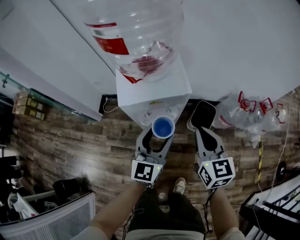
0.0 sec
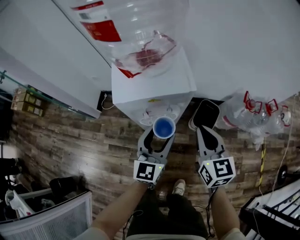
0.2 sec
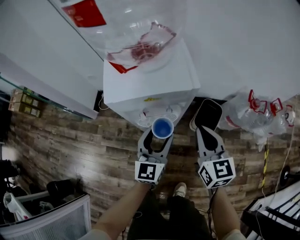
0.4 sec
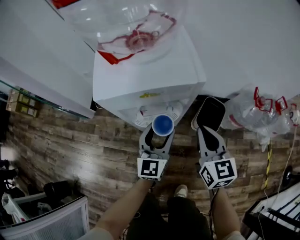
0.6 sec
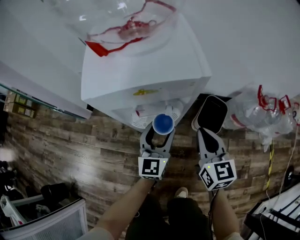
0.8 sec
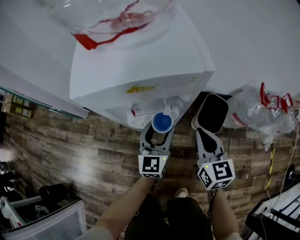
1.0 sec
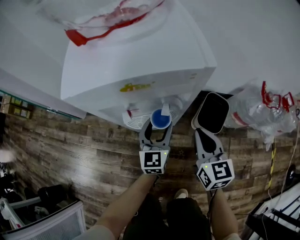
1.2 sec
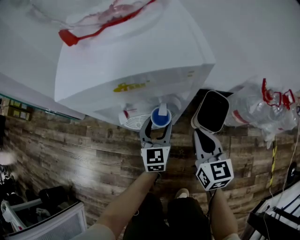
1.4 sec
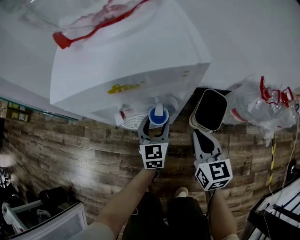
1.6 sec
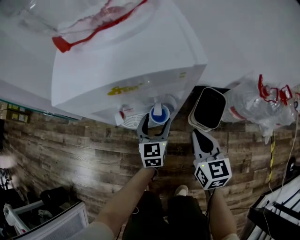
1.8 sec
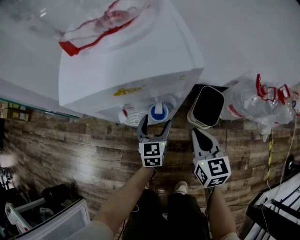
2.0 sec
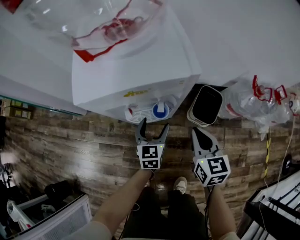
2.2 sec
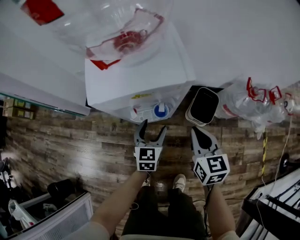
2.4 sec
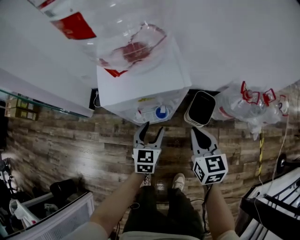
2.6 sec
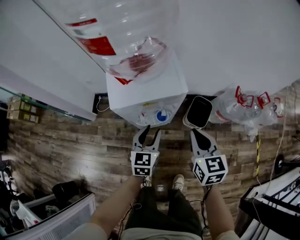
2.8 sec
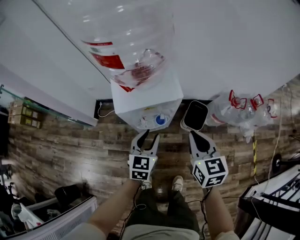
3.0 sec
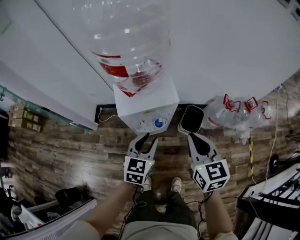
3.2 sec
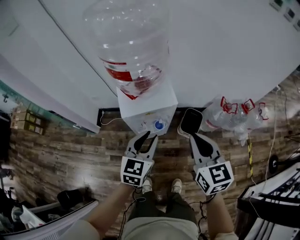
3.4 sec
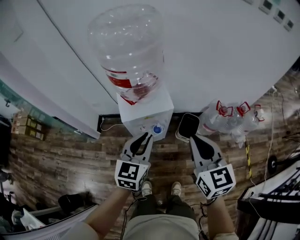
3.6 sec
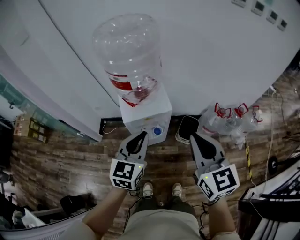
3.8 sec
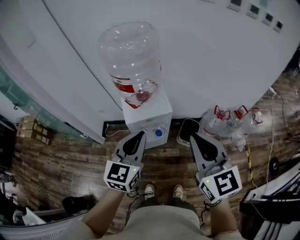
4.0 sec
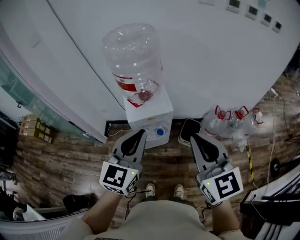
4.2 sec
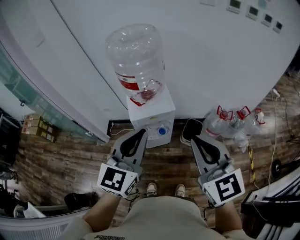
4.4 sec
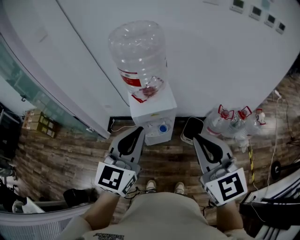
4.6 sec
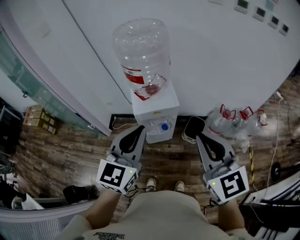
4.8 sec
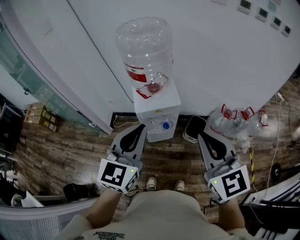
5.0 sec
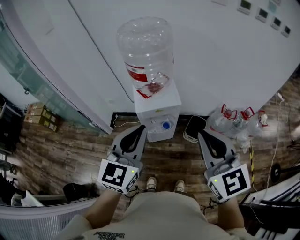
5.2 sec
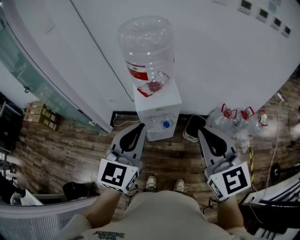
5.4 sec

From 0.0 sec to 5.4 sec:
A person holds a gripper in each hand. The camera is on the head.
From 0.0 sec to 1.4 sec: The grippers both shift downward by roughly 30 cm.
From 1.4 sec to 2.8 sec: The grippers both shift upward by some 20 cm.
From 2.8 sec to 4.0 sec: The two grippers go some 35 cm upward. The left gripper closes. Meanwhile the right gripper rotates about 20 degrees.
From 4.0 sec to 5.4 sec: The right gripper changes place by approximately 5 cm. The left gripper goes some 10 cm upward and backward.

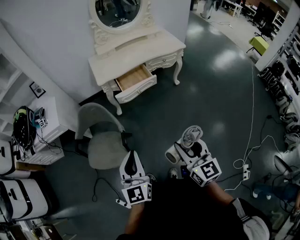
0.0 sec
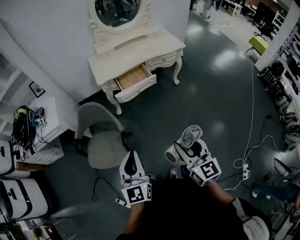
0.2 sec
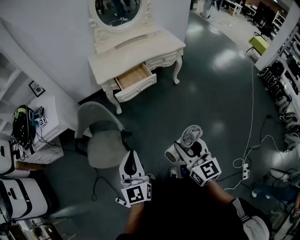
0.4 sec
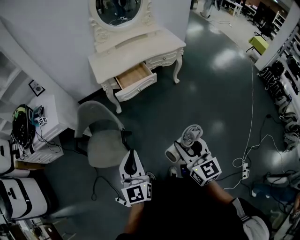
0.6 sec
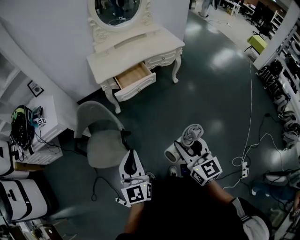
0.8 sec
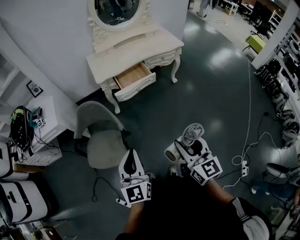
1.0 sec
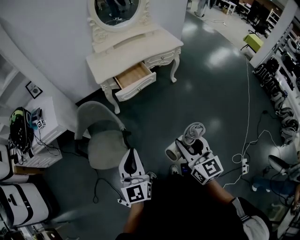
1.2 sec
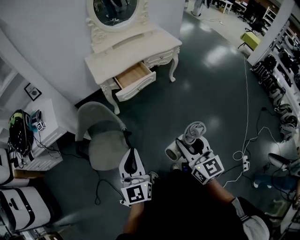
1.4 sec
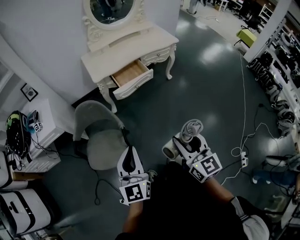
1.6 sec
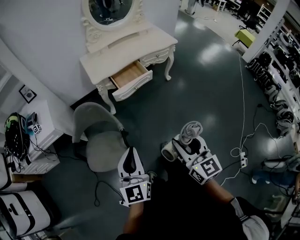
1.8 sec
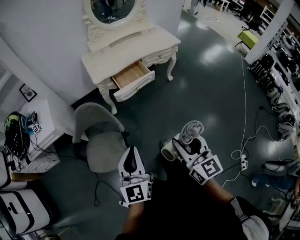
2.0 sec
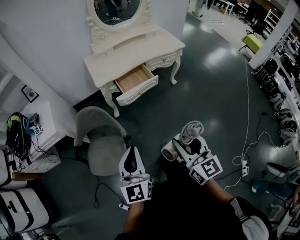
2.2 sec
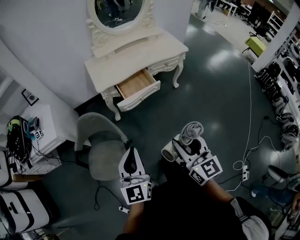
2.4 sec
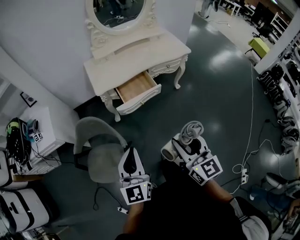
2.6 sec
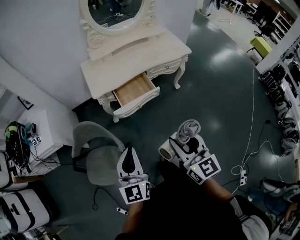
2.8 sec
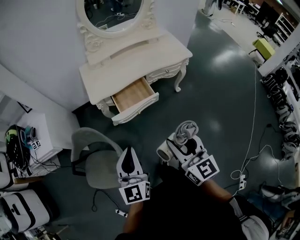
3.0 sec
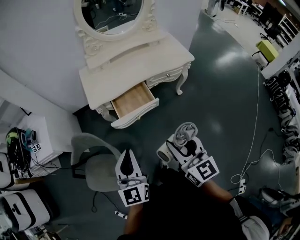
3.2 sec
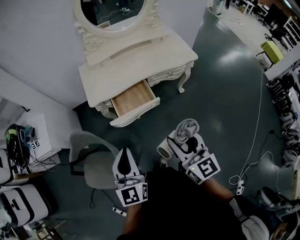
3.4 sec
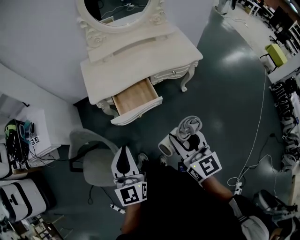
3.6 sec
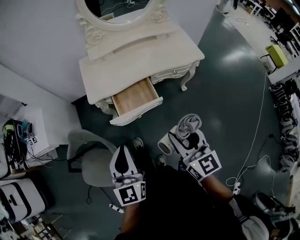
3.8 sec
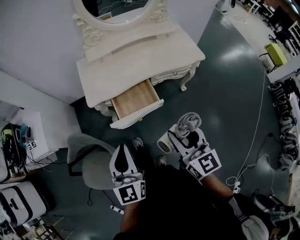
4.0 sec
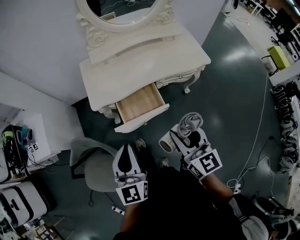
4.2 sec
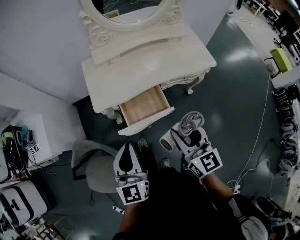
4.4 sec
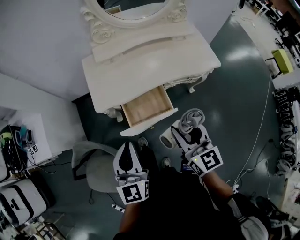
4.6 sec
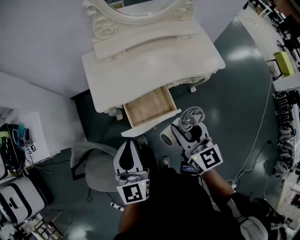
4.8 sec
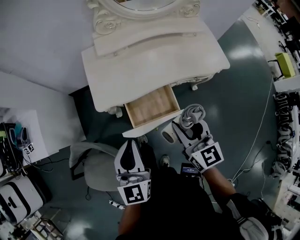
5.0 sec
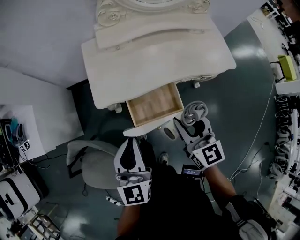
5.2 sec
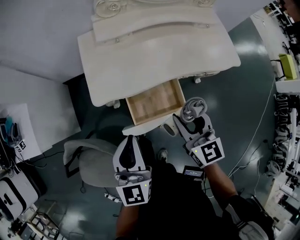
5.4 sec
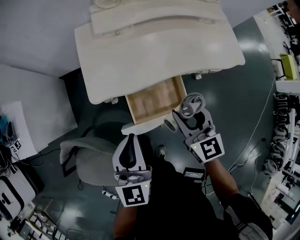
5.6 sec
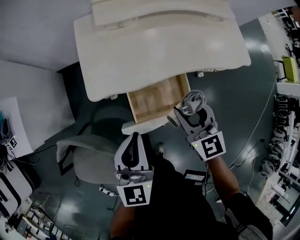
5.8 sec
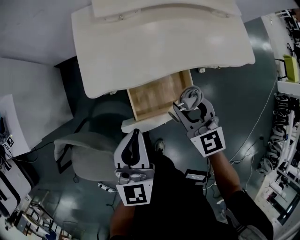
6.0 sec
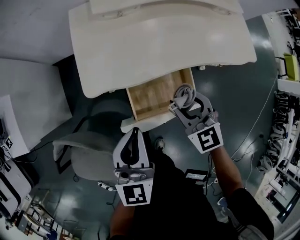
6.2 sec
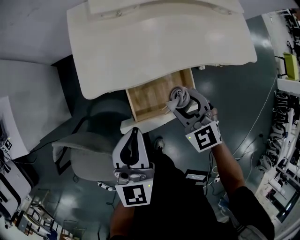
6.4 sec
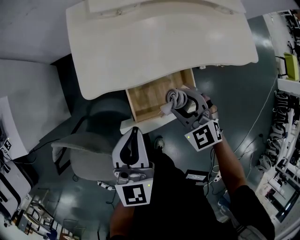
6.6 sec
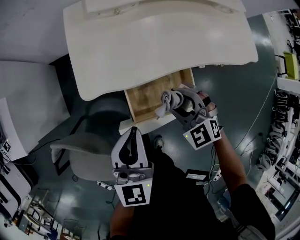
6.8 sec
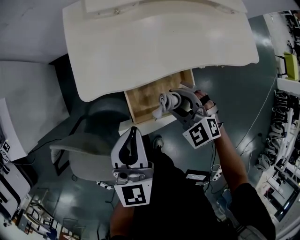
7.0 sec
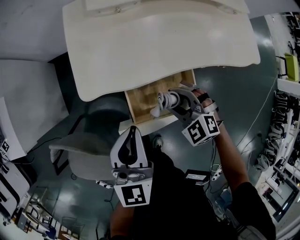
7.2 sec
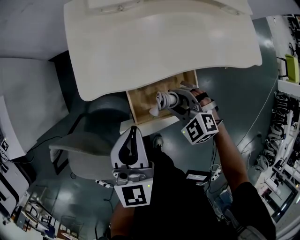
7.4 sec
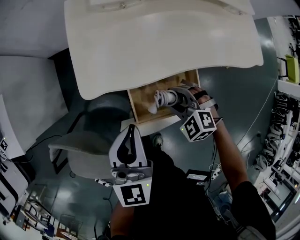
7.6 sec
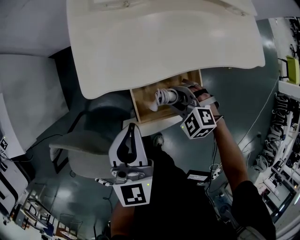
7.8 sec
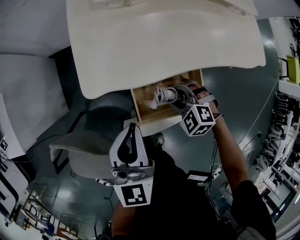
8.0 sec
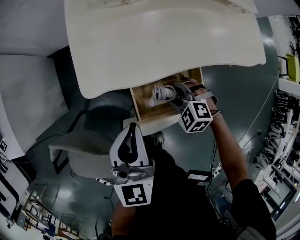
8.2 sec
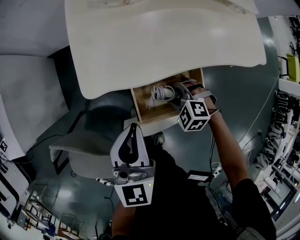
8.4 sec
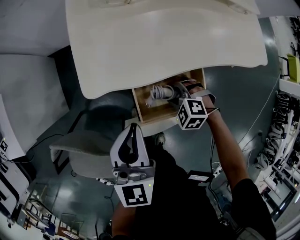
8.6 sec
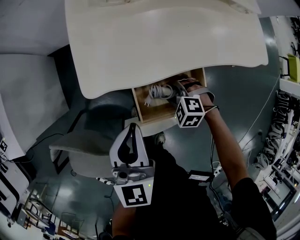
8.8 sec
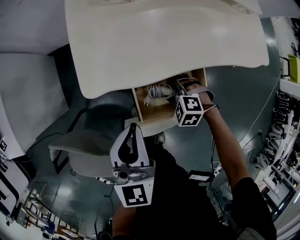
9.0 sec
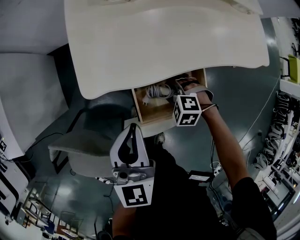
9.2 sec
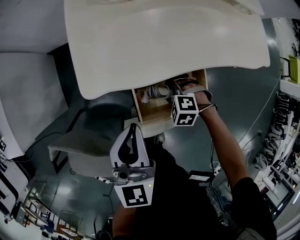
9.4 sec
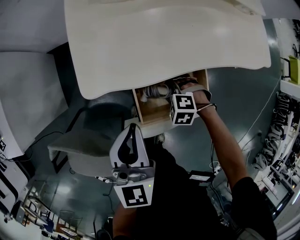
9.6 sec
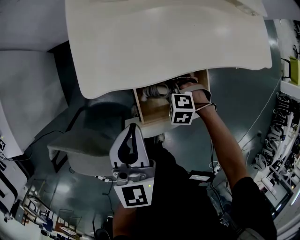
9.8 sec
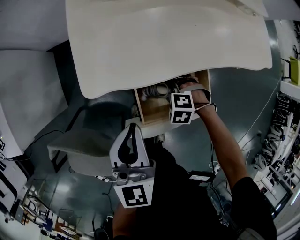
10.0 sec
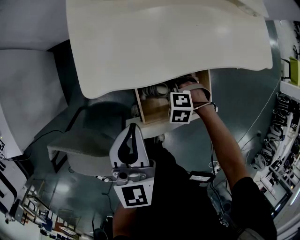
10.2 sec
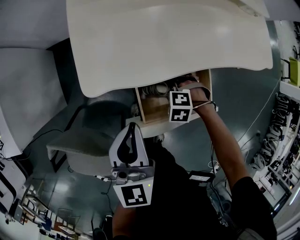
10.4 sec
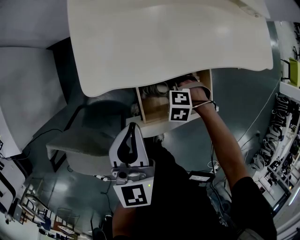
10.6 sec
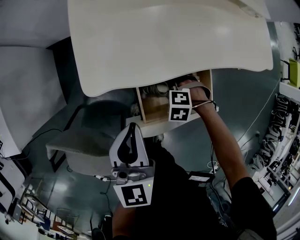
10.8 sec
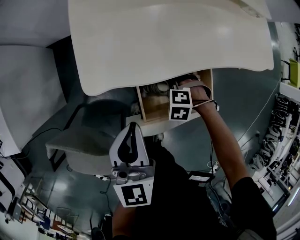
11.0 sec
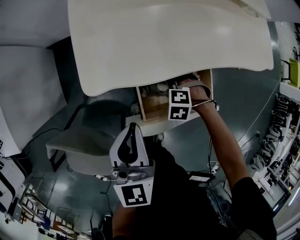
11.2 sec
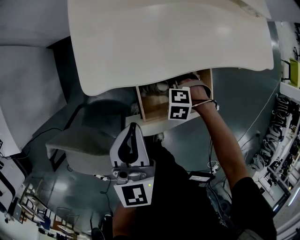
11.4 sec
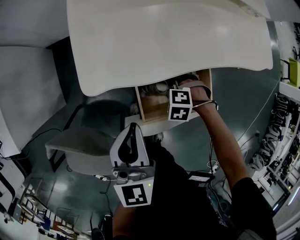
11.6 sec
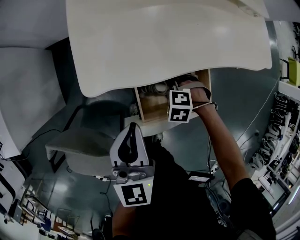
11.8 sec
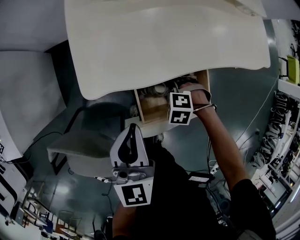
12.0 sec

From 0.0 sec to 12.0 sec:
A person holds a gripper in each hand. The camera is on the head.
From 0.0 sec to 1.6 sec: The two grippers go some 5 cm to the left.
From 1.6 sec to 3.0 sec: The right gripper travels forward by roughly 25 cm. Meanwhile the left gripper goes roughly 25 cm forward and to the right.
From 3.0 sec to 4.4 sec: The grippers both shift forward by roughly 20 cm.
From 4.4 sec to 6.0 sec: Both grippers move downward and forward, some 25 cm. The right gripper swivels roughly 30 degrees.
From 6.0 sec to 7.6 sec: The left gripper moves approximately 5 cm, while the right gripper shifts some 15 cm downward, and tips its fingers downward by some 30 degrees.
From 7.6 sec to 9.0 sec: The right gripper moves downward, roughly 10 cm.
From 9.0 sec to 12.0 sec: The grippers stay close to where they were, moving slightly.

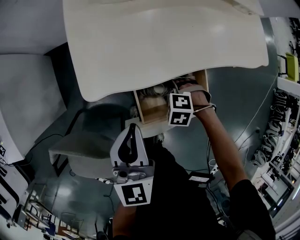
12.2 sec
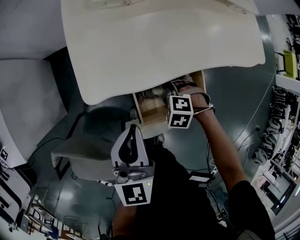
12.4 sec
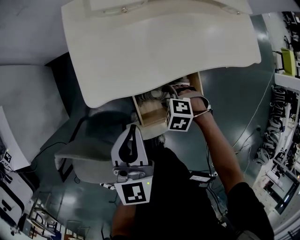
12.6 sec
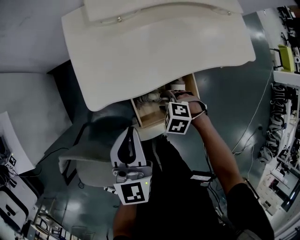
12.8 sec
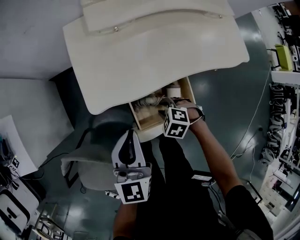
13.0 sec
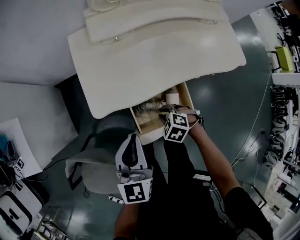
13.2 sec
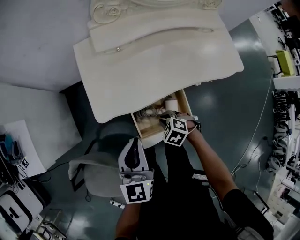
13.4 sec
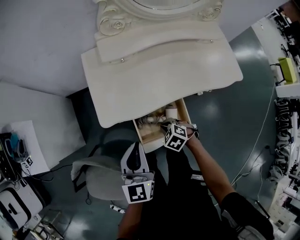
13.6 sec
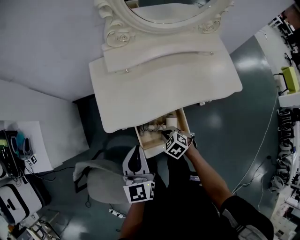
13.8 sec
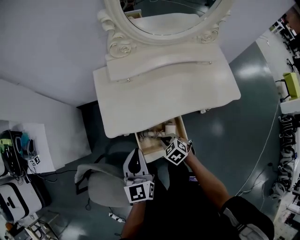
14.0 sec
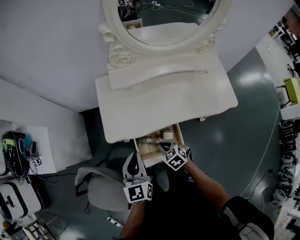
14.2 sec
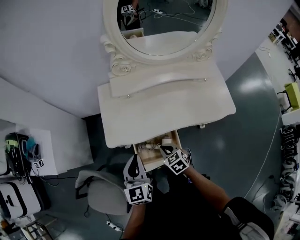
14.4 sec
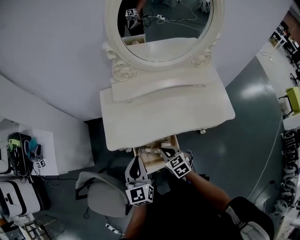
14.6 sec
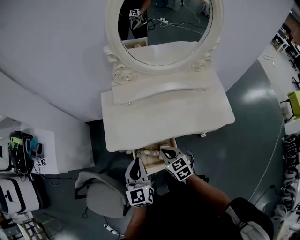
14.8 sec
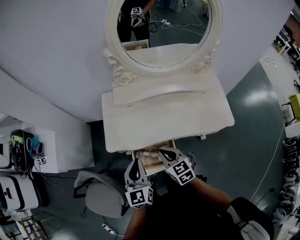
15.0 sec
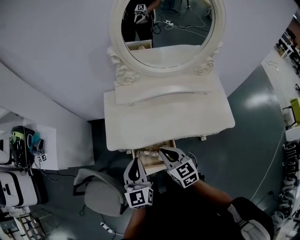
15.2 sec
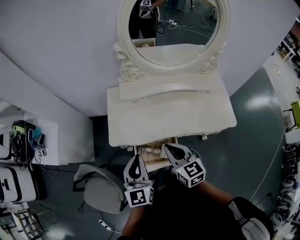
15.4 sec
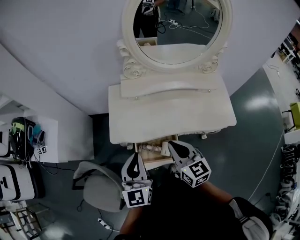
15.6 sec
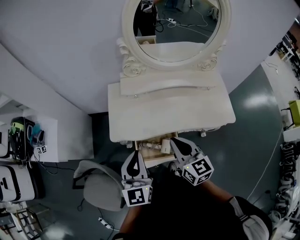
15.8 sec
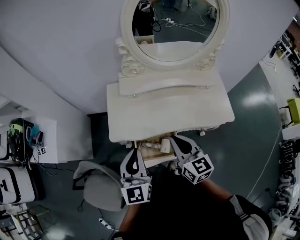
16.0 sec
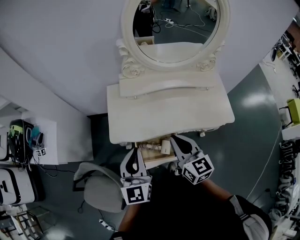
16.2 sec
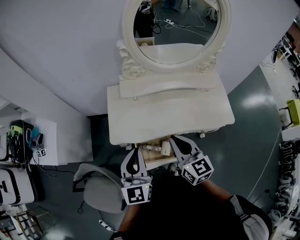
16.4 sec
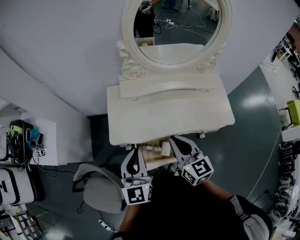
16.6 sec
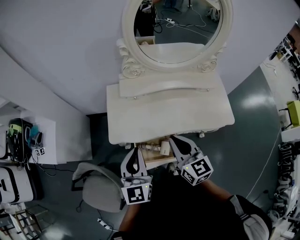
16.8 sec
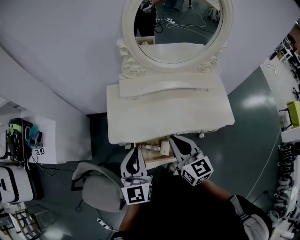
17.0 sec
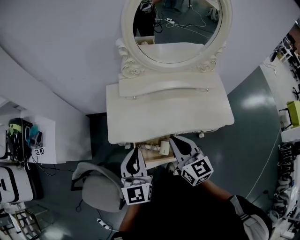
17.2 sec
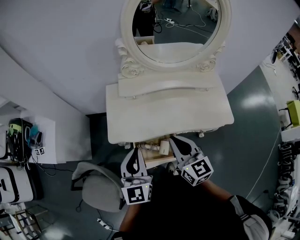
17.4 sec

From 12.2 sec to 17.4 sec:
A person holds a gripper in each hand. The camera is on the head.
From 12.2 sec to 14.0 sec: The two grippers go about 15 cm upward. The right gripper rotates approximately 40 degrees, and closes its fingers.
From 14.0 sec to 15.6 sec: The left gripper is displaced upward by roughly 10 cm; the right gripper shifts some 30 cm upward, and points its fingers some 50 degrees further upward.
From 15.6 sec to 17.4 sec: The grippers move only a little.

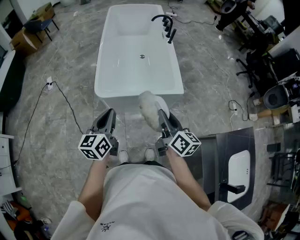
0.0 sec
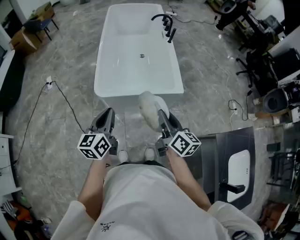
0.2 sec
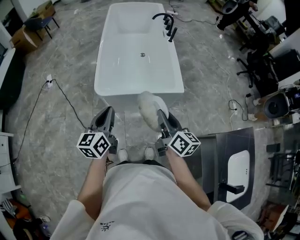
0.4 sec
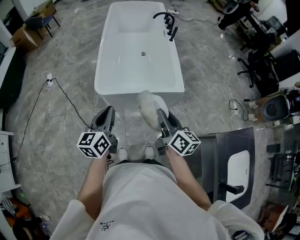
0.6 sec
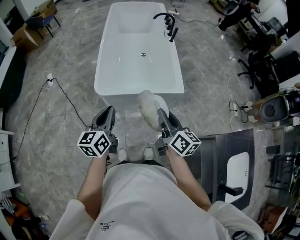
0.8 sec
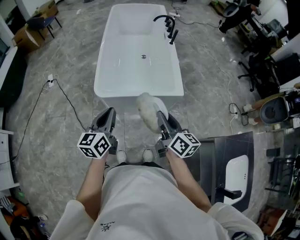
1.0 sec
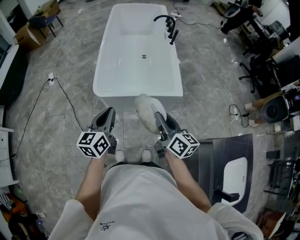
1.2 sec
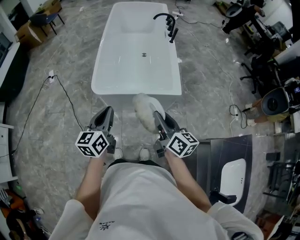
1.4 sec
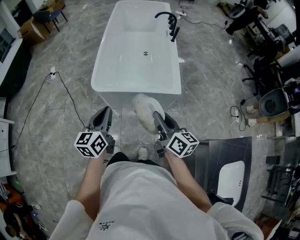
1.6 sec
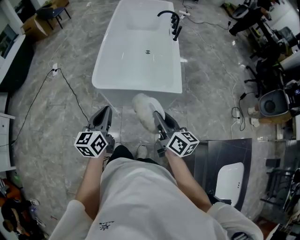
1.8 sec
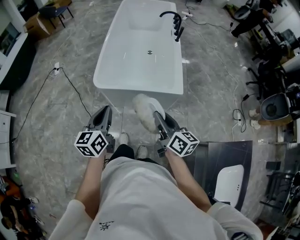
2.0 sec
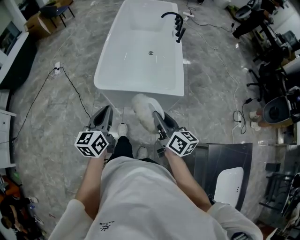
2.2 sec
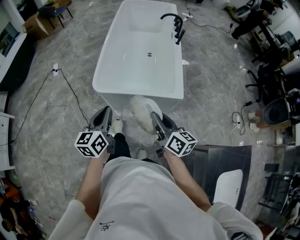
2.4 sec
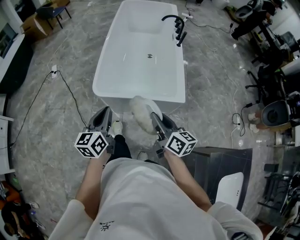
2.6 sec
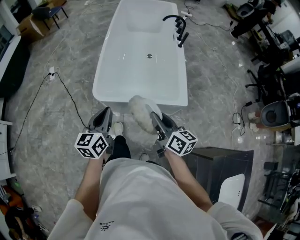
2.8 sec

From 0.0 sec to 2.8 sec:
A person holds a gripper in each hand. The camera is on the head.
From 0.0 sec to 1.4 sec: There are only small adjustments of the grippers.
From 1.4 sec to 2.8 sec: The grippers both shift forward by roughly 10 cm.
